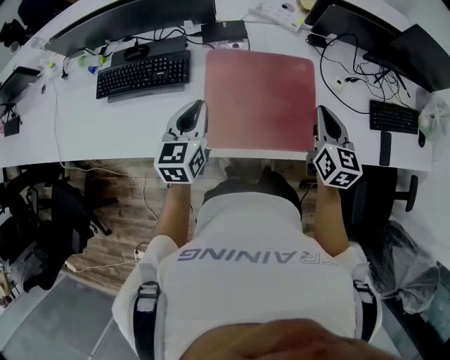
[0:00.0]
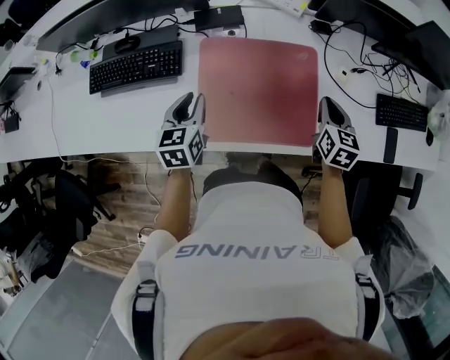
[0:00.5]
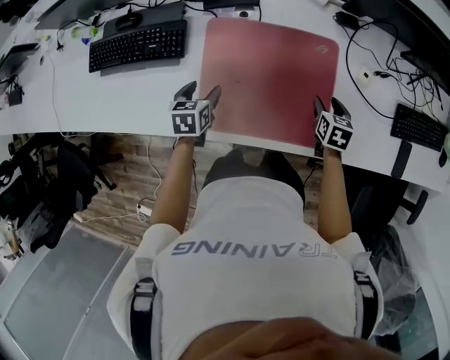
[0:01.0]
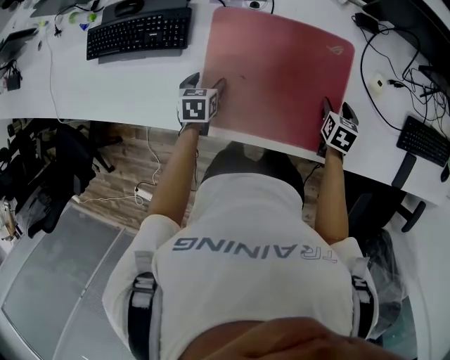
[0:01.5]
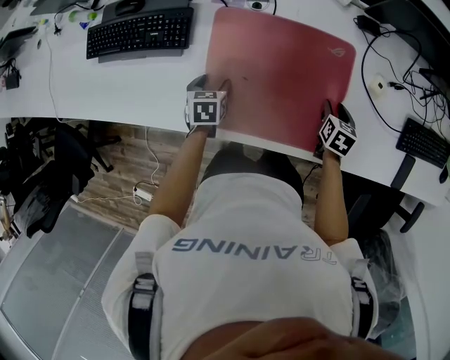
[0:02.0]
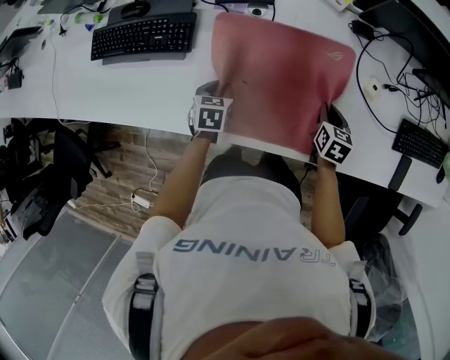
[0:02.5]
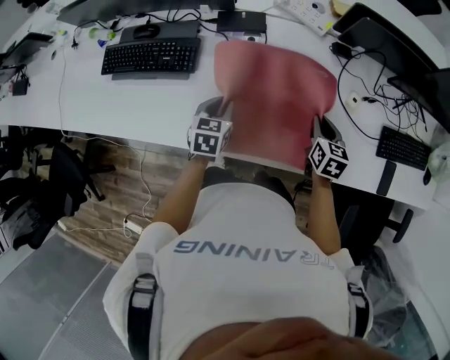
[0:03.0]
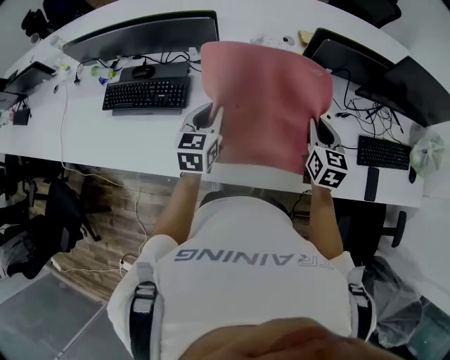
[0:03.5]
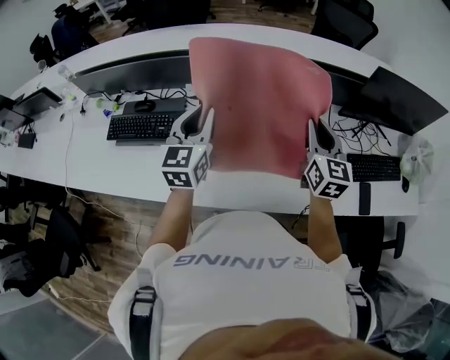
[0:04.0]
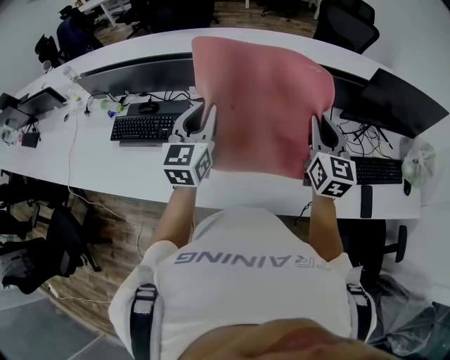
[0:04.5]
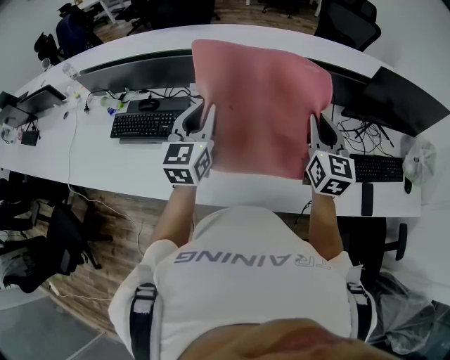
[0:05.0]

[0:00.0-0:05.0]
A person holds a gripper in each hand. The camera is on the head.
0:00.0 to 0:02.5: Both grippers travel together downward, about 25 cm. The right gripper changes its angle by roughly 30 degrees, and opens, then closes again; the left gripper angles its fingers downward, by approximately 40 degrees, and opens and closes again.
0:02.5 to 0:05.0: Both grippers travel together upward, approximately 40 cm. The right gripper tilts its fingers approximately 40 degrees upward. Meanwhile the left gripper tips its fingers upward by roughly 50 degrees.

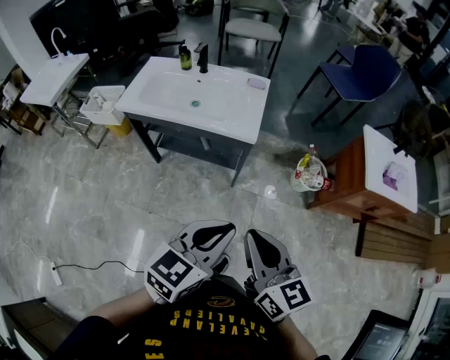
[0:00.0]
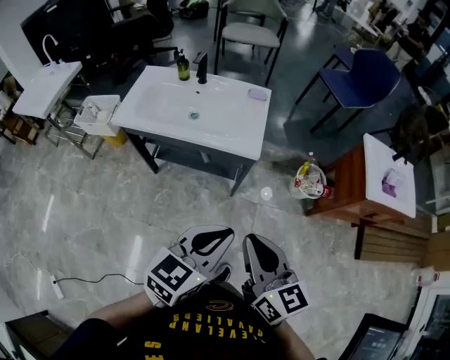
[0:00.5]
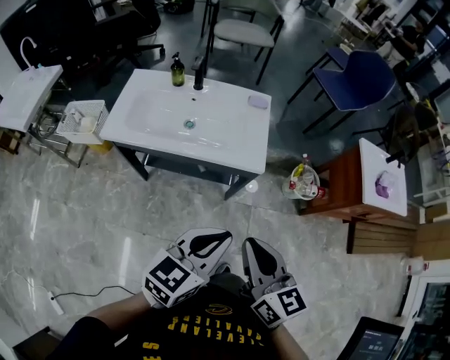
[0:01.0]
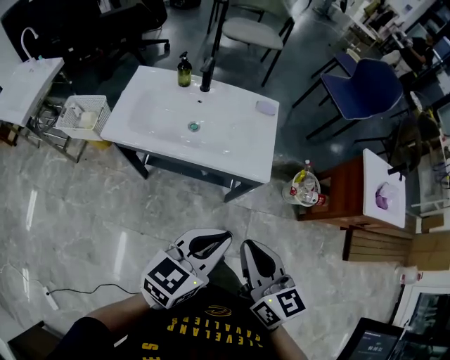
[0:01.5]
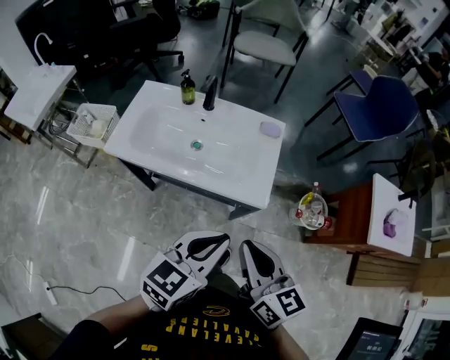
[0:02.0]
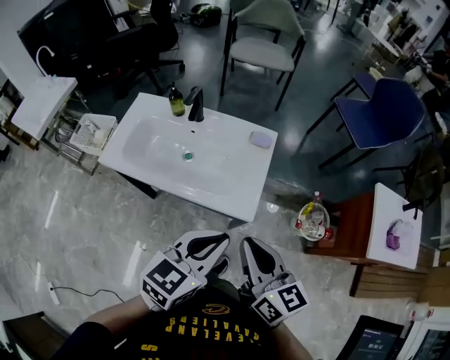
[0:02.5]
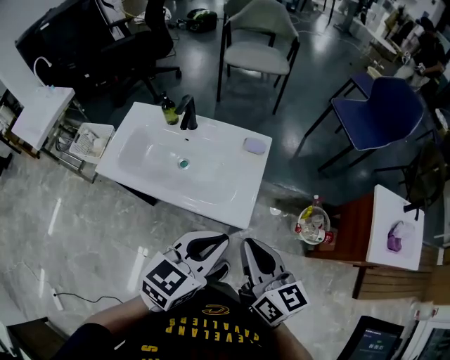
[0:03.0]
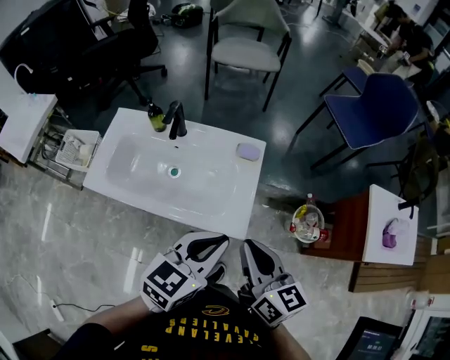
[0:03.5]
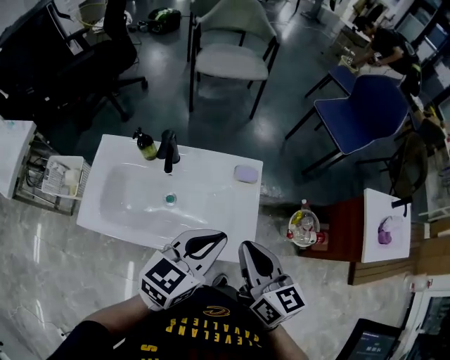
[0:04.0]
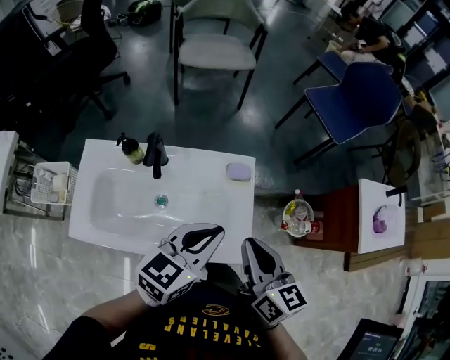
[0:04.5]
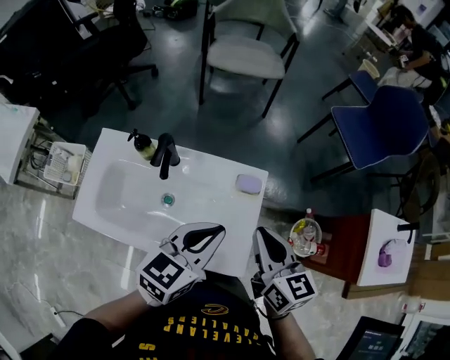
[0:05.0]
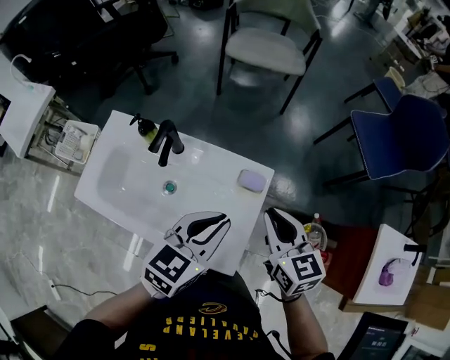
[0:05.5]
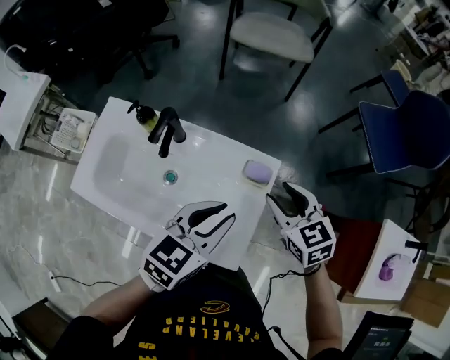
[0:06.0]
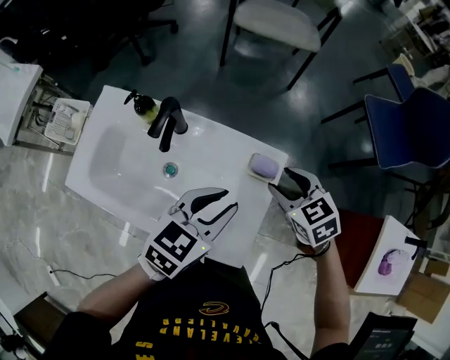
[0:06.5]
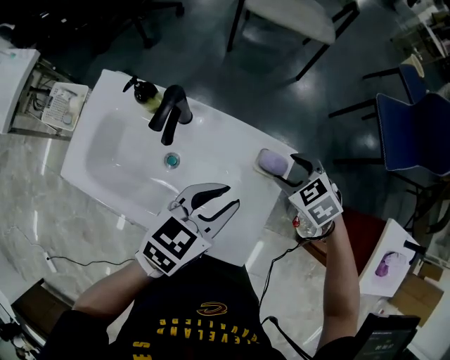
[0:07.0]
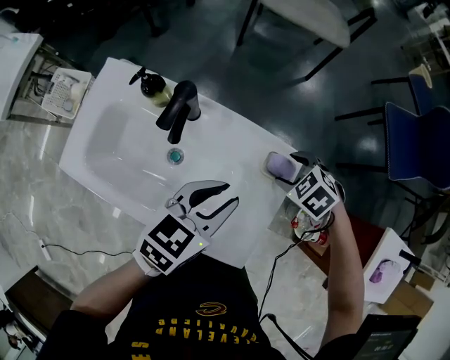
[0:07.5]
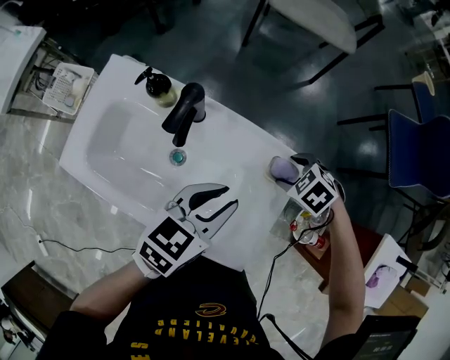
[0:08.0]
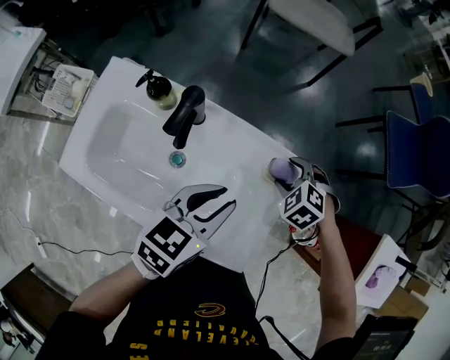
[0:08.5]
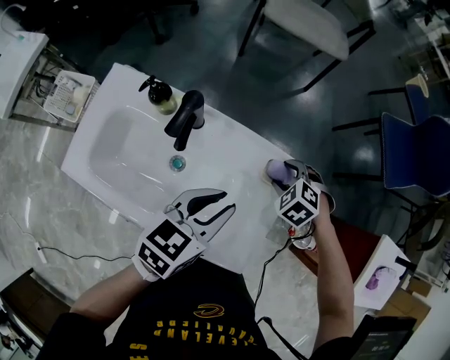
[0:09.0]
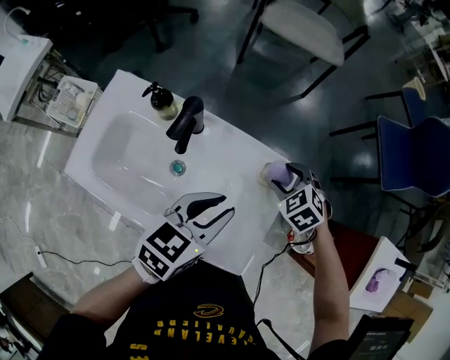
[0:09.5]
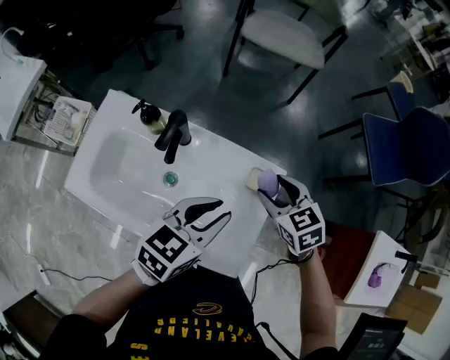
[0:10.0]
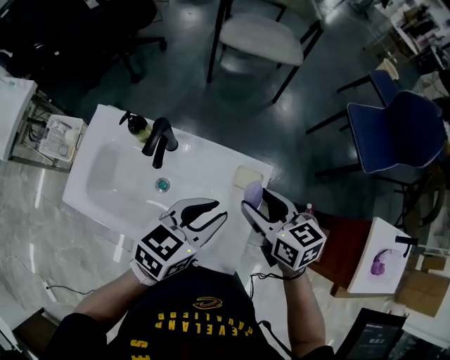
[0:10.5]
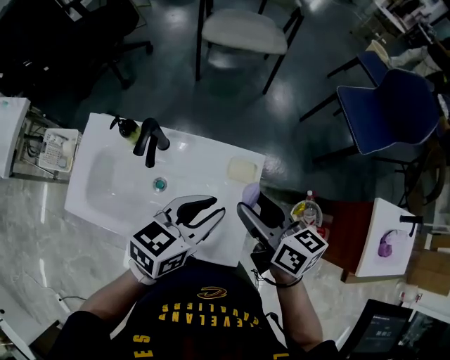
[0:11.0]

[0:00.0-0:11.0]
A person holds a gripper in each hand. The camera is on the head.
0:00.0 to 0:02.0: Both grippers travel together forward and to the left, approximately 25 cm.
0:02.0 to 0:03.5: Both grippers travel together forward and to the right, some 15 cm.
0:03.5 to 0:05.5: Both grippers travel together forward, about 20 cm. The right gripper turns by about 20 degrees.
0:05.5 to 0:07.5: The right gripper heads downward, covering roughly 20 cm, angles its fingers downward, by about 50 degrees, and opens its fingers, while the left gripper heads downward, covering some 10 cm, and opens up.
0:07.5 to 0:09.0: There are only small adjustments of the grippers.
0:09.0 to 0:11.0: The right gripper is displaced upward and backward by about 25 cm, and points its fingers about 60 degrees further upward; the left gripper is displaced upward and to the right by approximately 10 cm.

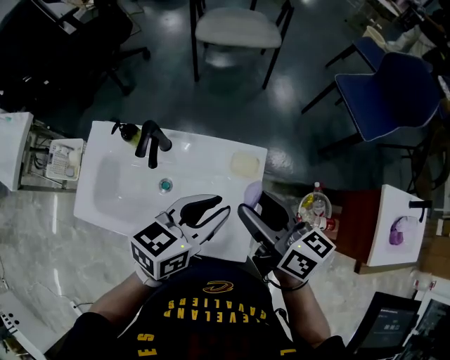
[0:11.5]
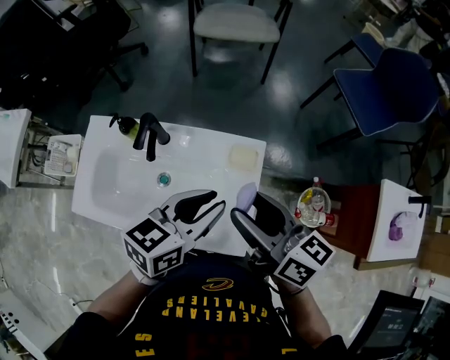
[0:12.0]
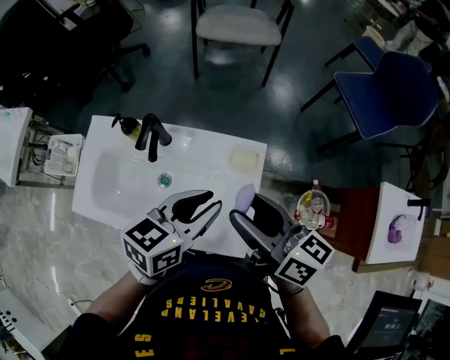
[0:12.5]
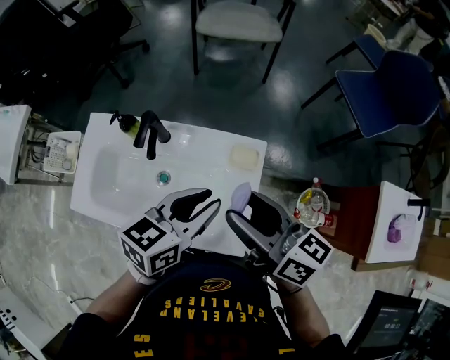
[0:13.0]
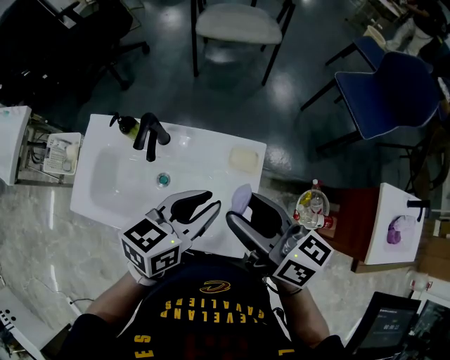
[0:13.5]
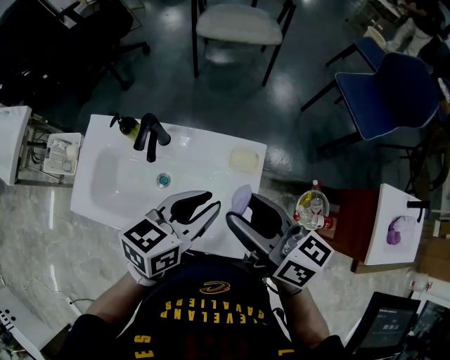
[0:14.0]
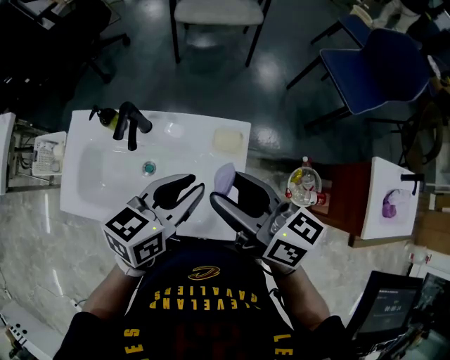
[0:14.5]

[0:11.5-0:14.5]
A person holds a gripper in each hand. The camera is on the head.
0:11.5 to 0:13.0: The grippers stay close to where they were, moving slightly.
0:13.0 to 0:14.5: Neither gripper changes place.

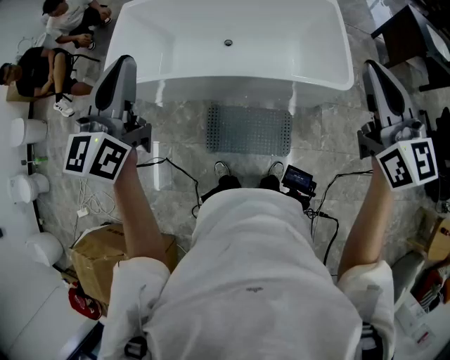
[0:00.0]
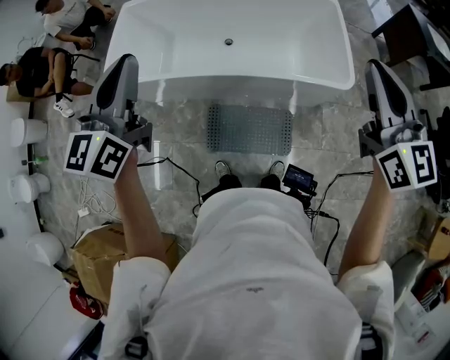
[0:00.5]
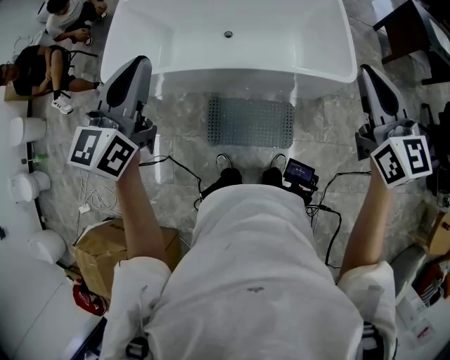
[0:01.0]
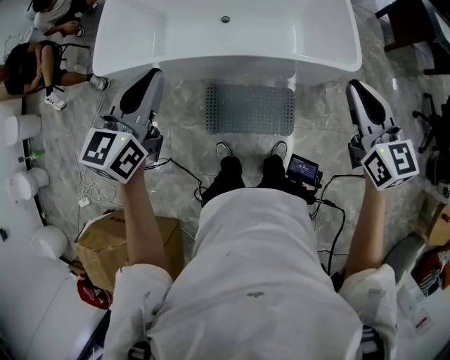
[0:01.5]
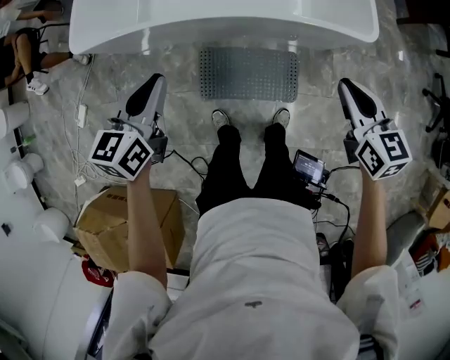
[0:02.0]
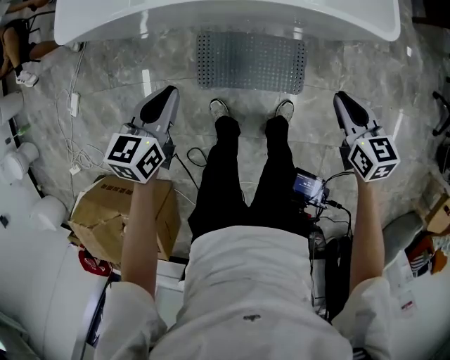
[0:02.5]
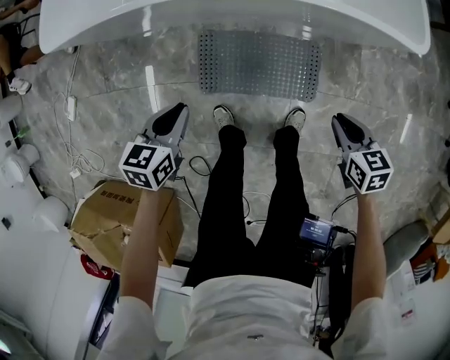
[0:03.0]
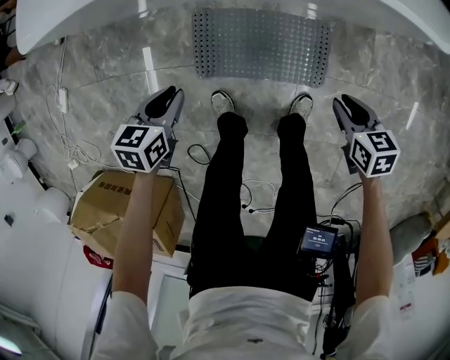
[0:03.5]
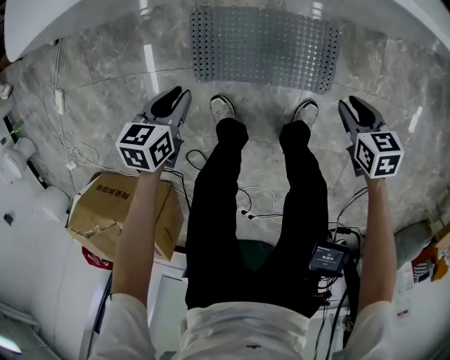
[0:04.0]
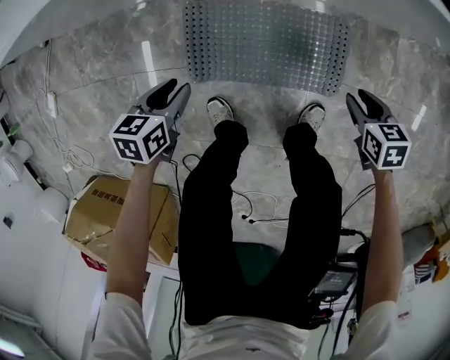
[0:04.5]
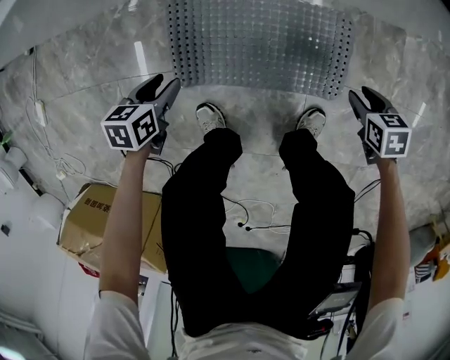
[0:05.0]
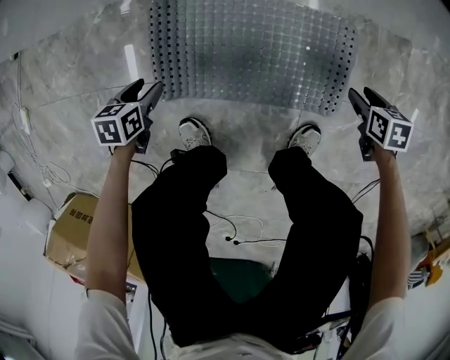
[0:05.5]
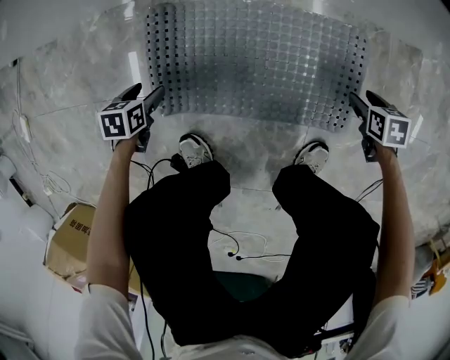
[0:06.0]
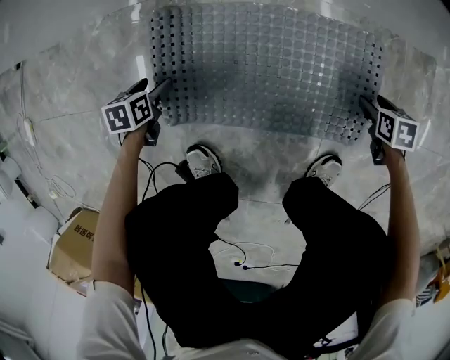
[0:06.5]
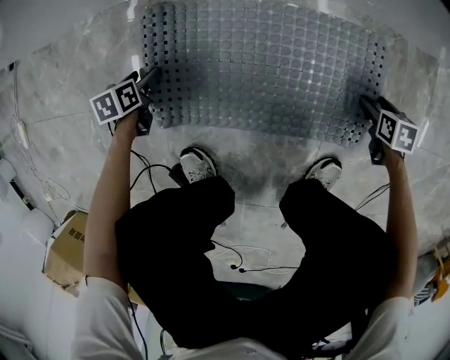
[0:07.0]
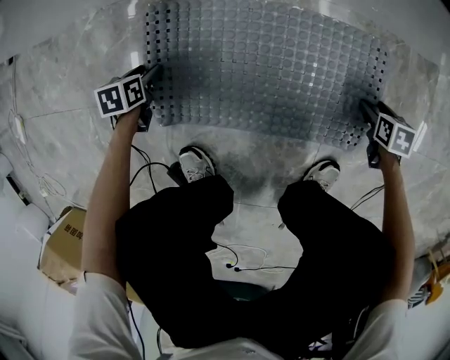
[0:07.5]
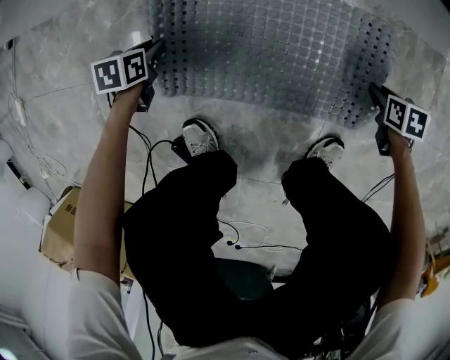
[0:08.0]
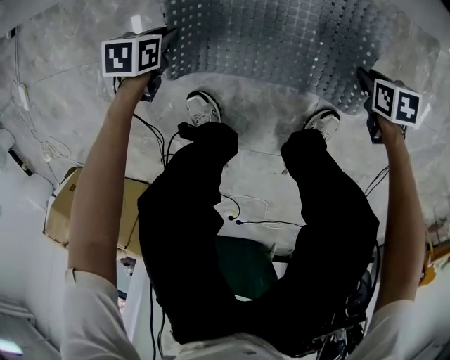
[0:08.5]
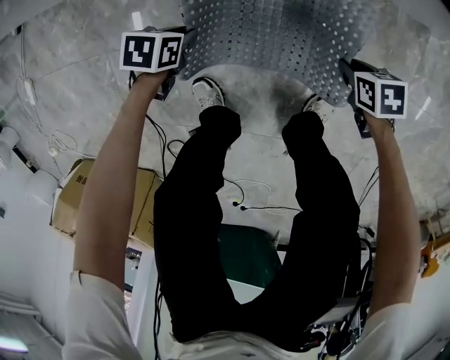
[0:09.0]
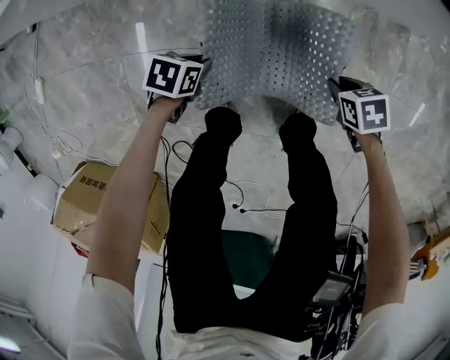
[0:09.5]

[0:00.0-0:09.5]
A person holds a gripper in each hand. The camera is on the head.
0:00.0 to 0:02.0: Both grippers travel together downward, approximately 30 cm. The right gripper turns by some 30 degrees. The left gripper turns by some 30 degrees.
0:02.0 to 0:04.0: The grippers both shift downward by roughly 50 cm. The right gripper changes its angle by some 30 degrees; the left gripper turns by approximately 30 degrees.
0:04.0 to 0:05.5: Both grippers move downward, approximately 30 cm. The left gripper opens up.
0:05.5 to 0:07.5: Both grippers move downward, about 15 cm.
0:07.5 to 0:09.5: Both grippers travel together upward, about 25 cm. The left gripper changes its angle by roughly 30 degrees, and closes. Meanwhile the right gripper changes its angle by approximately 30 degrees, and closes.
